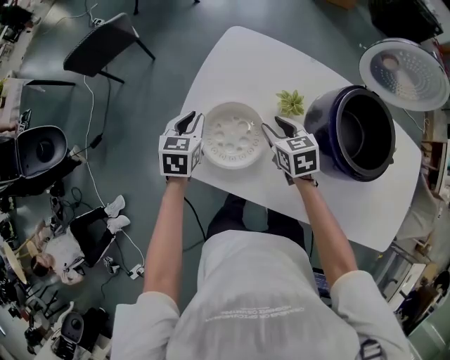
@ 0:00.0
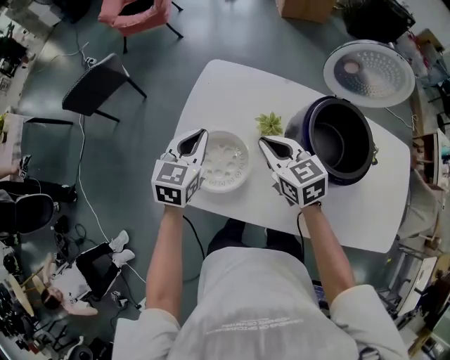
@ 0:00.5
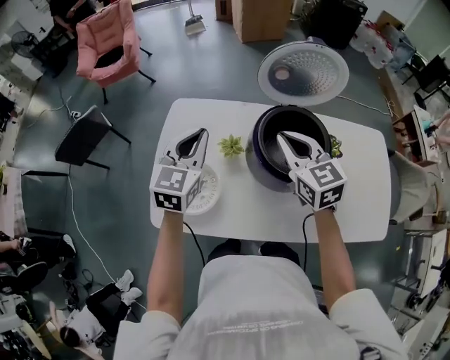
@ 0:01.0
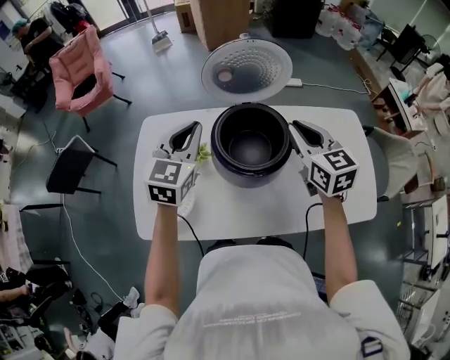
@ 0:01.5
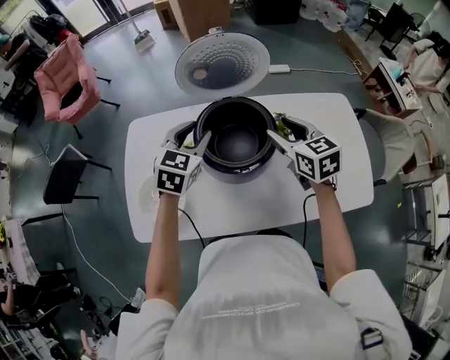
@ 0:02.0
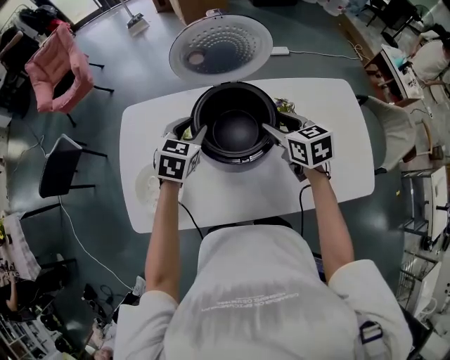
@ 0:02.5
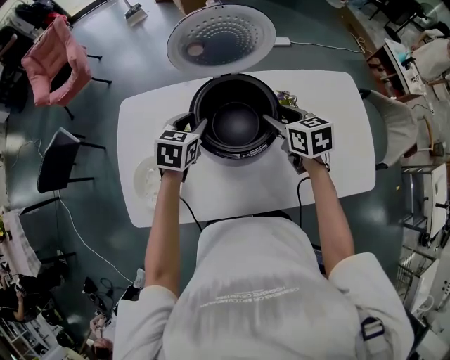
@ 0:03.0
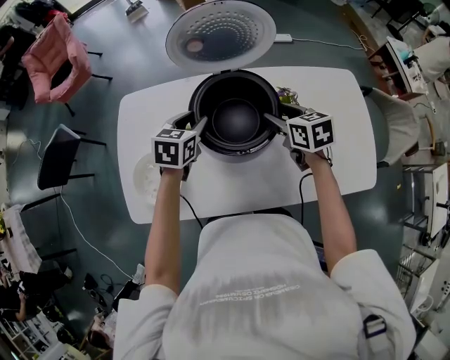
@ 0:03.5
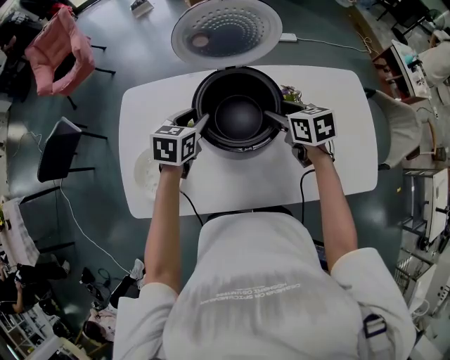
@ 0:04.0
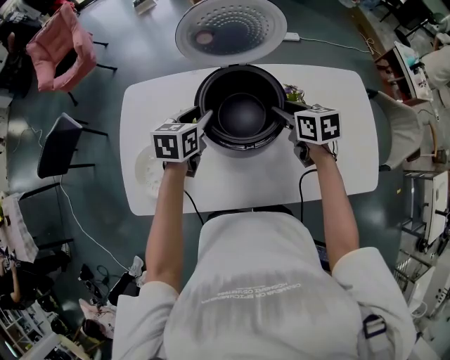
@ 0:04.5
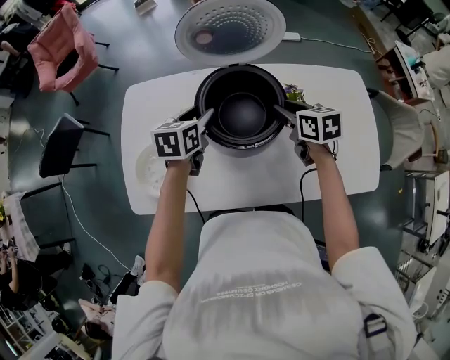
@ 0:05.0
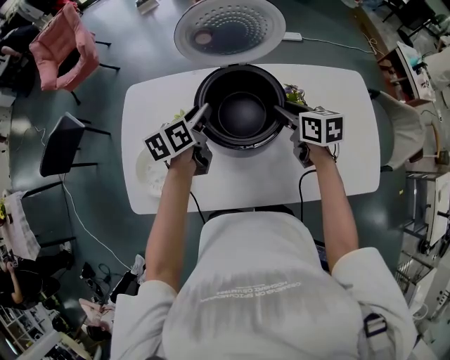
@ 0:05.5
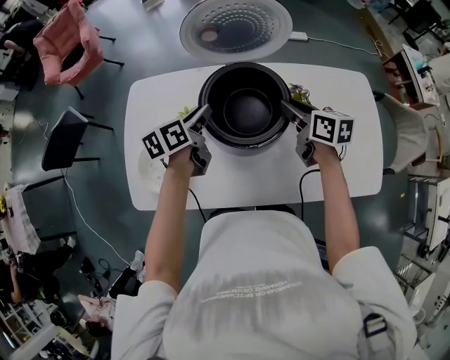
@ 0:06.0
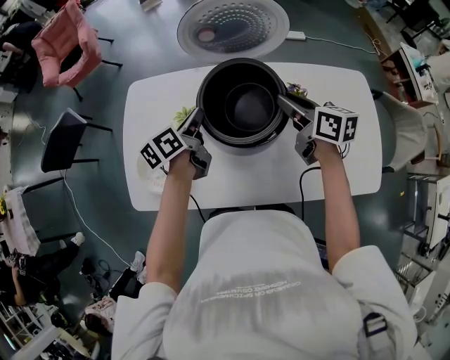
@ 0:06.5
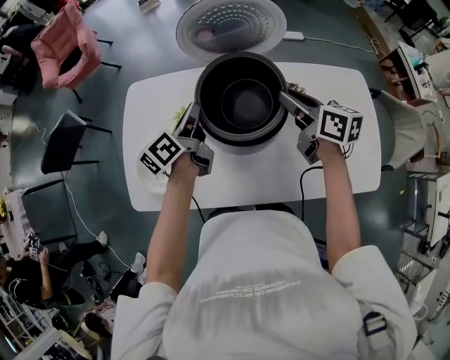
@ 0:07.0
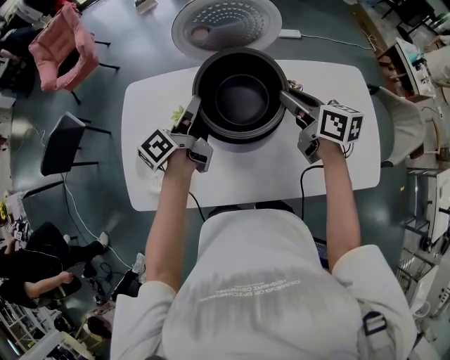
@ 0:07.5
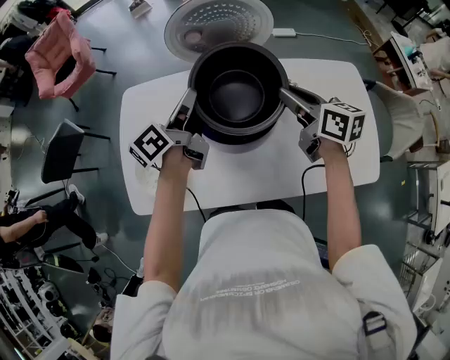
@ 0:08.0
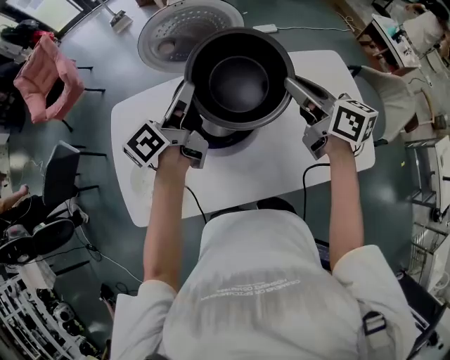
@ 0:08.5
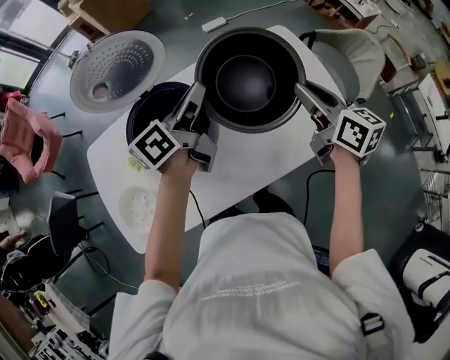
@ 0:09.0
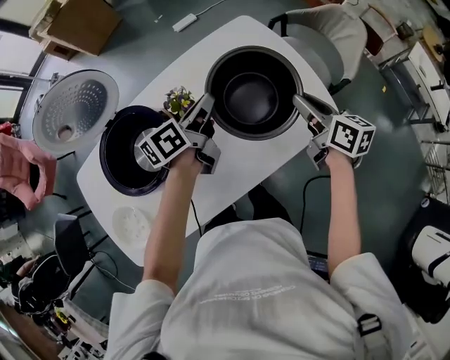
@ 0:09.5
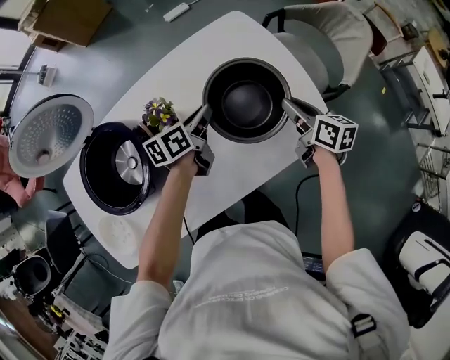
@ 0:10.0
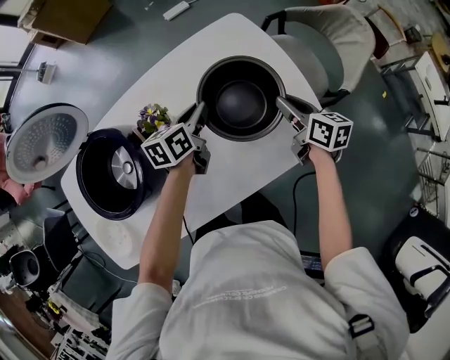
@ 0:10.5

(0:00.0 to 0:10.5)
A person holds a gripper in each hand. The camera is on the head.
0:00.0 - 0:02.0: The left gripper shifts by roughly 40 cm, swivels approximately 50 degrees, and opens up; the right gripper changes place by roughly 40 cm, turns by roughly 30 degrees, and closes, then opens again.
0:02.0 - 0:04.0: The grippers both shift downward by approximately 10 cm. The left gripper turns by roughly 20 degrees, while the right gripper rotates some 20 degrees.
0:04.0 - 0:06.5: The left gripper rolls counterclockwise, seen from behind, by approximately 50 degrees, and closes; the right gripper moves upward, about 5 cm, rotates about 30 degrees, and closes its fingers.
0:06.5 - 0:08.5: Both grippers move upward and to the right, roughly 15 cm. The left gripper changes its angle by approximately 30 degrees.
0:08.5 - 0:10.5: The right gripper shifts by approximately 40 cm, and turns by about 30 degrees, while the left gripper moves roughly 40 cm, and points its fingers approximately 30 degrees further downward.

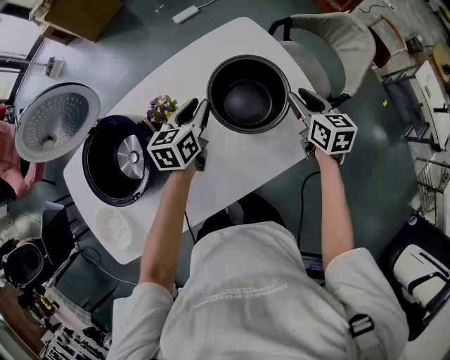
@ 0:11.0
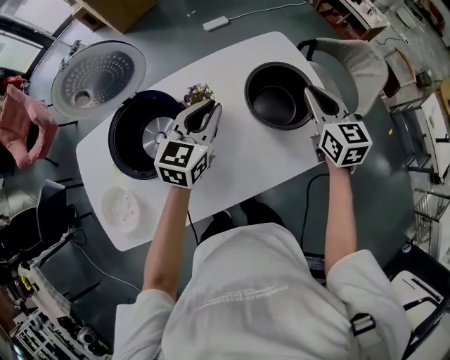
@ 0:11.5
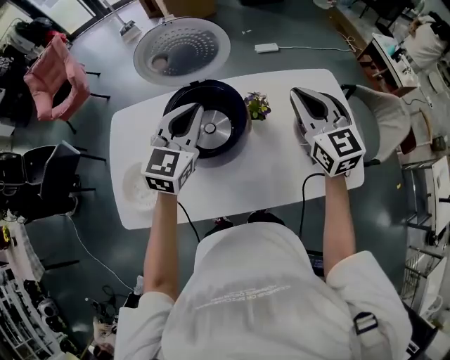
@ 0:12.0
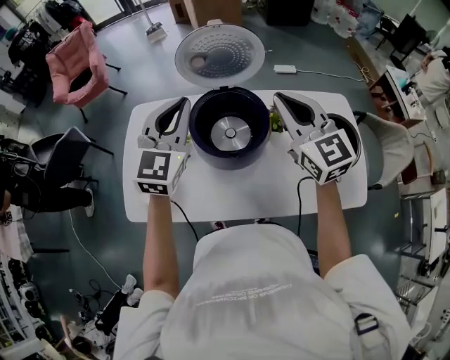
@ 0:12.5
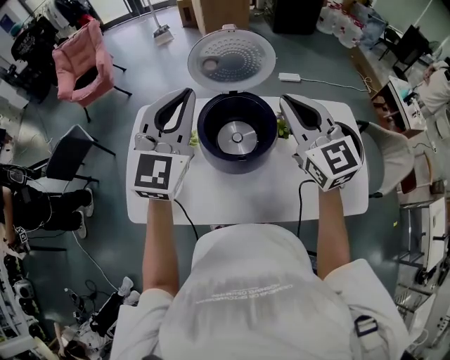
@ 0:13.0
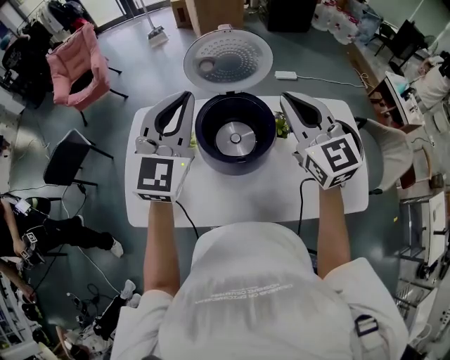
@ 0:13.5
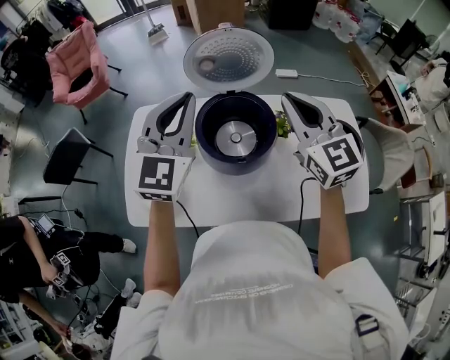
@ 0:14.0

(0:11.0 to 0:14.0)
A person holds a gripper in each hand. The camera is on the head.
0:11.0 - 0:12.5: The left gripper shifts by roughly 50 cm, changes its angle by some 50 degrees, and closes. Meanwhile the right gripper ends up about 50 cm from where it was, turns by some 60 degrees, and closes up.

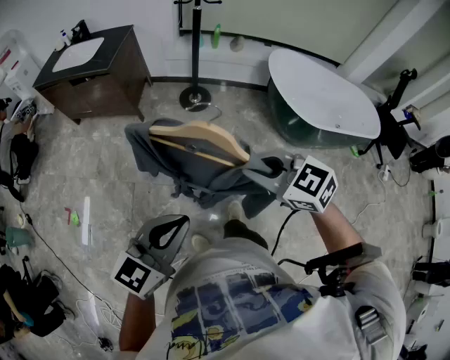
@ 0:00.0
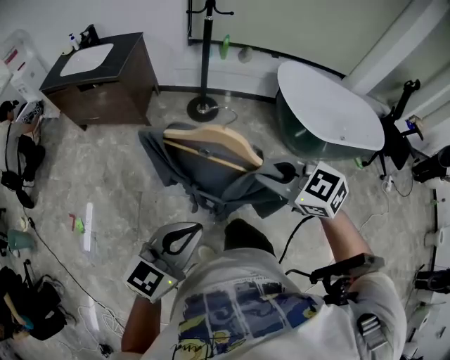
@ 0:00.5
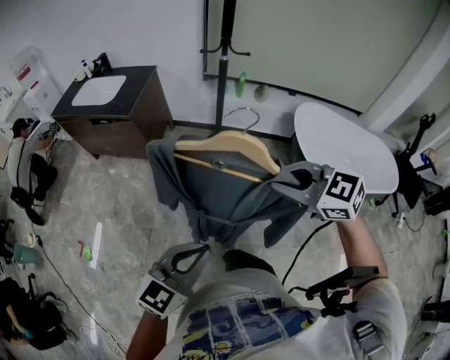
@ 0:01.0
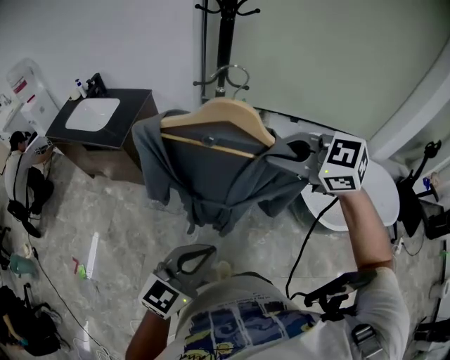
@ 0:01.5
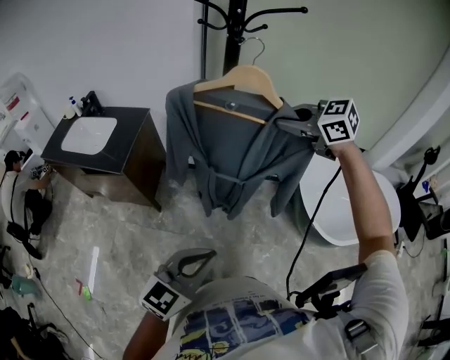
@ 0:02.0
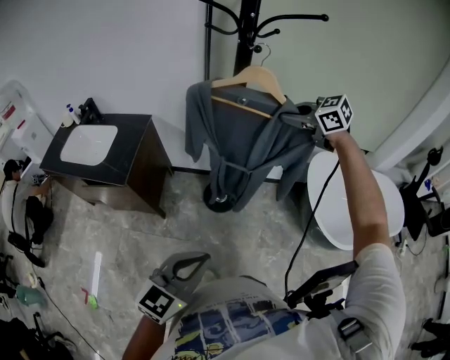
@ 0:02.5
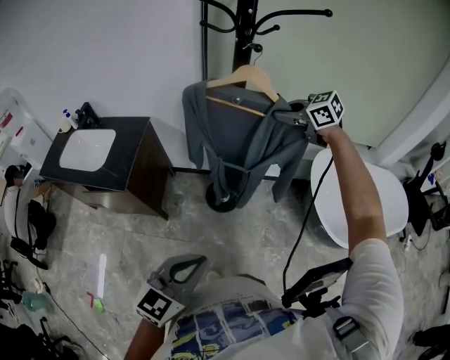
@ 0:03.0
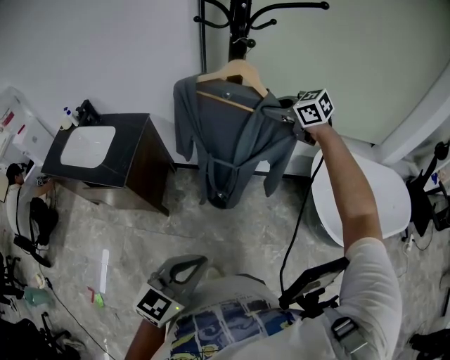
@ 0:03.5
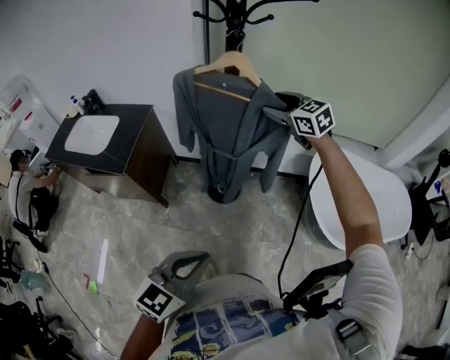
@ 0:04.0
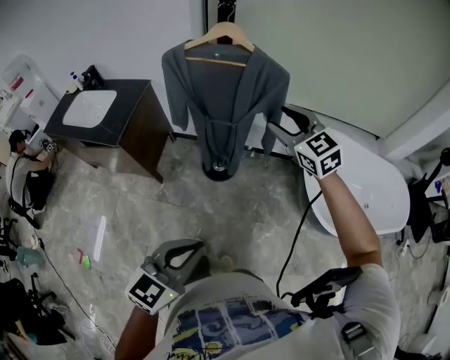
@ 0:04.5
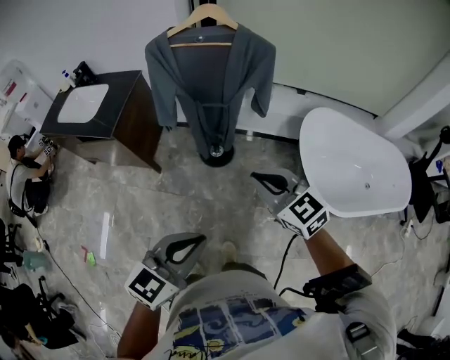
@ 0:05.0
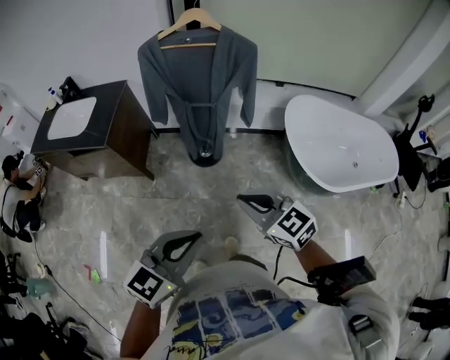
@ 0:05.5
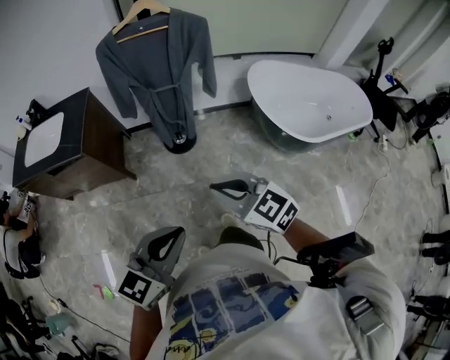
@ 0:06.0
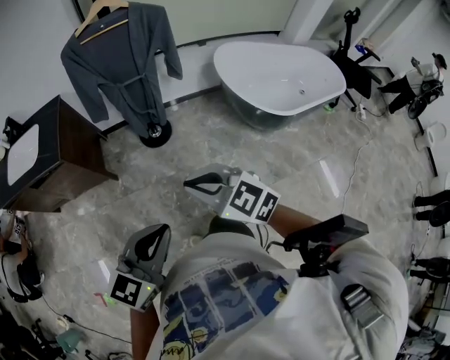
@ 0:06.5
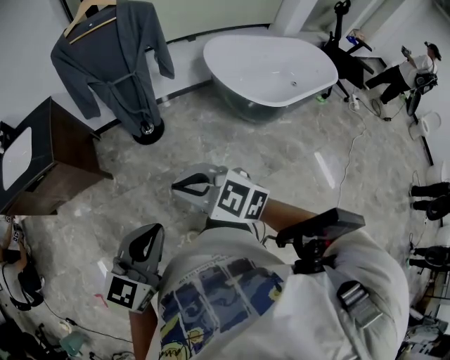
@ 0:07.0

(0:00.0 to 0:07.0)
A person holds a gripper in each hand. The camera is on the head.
0:00.0 - 0:02.0: Both grippers move forward, approximately 50 cm.
0:02.0 - 0:03.5: The right gripper is displaced forward and downward by roughly 20 cm. Meanwhile the left gripper is displaced forward by some 10 cm.
0:03.5 - 0:05.0: The right gripper heads backward, covering some 35 cm, and opens, then closes again. The left gripper goes about 15 cm backward and to the right.
0:05.0 - 0:07.0: The left gripper moves backward and to the left, some 15 cm. Meanwhile the right gripper is displaced backward and to the left by some 25 cm.

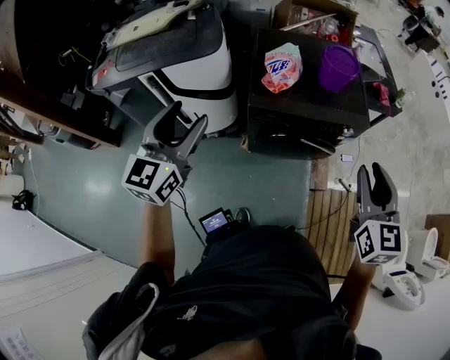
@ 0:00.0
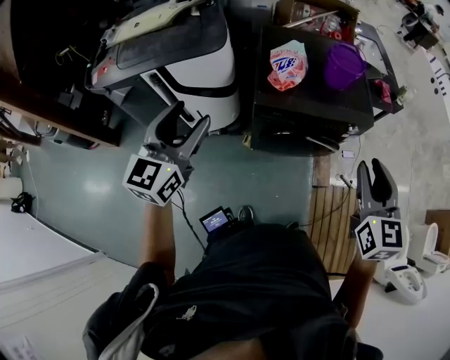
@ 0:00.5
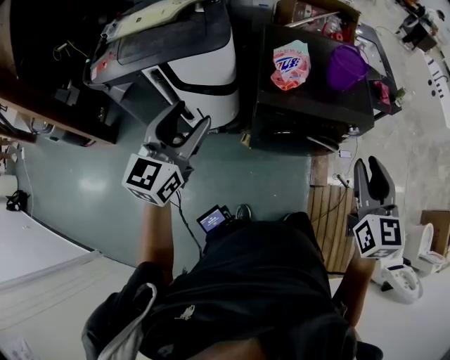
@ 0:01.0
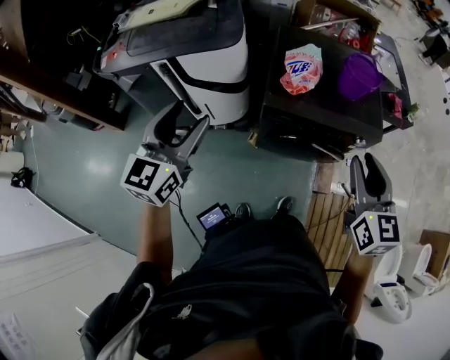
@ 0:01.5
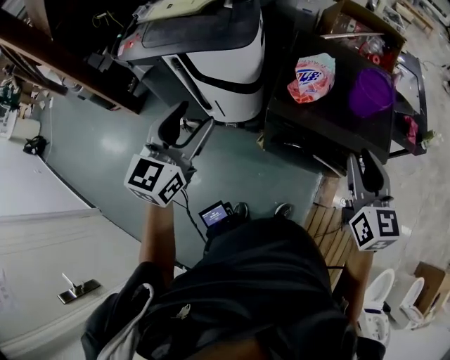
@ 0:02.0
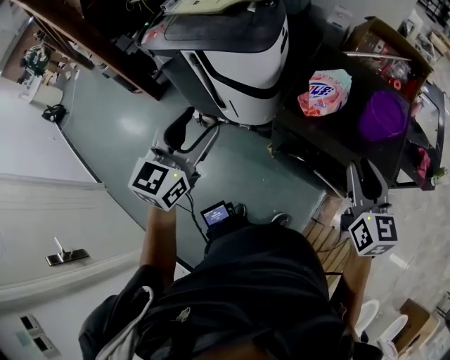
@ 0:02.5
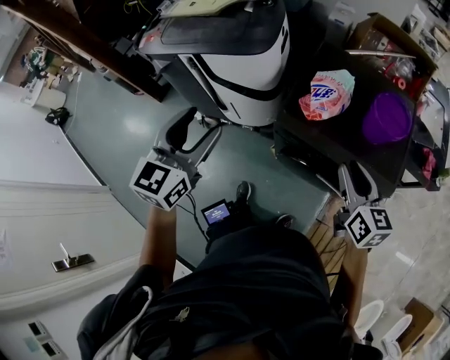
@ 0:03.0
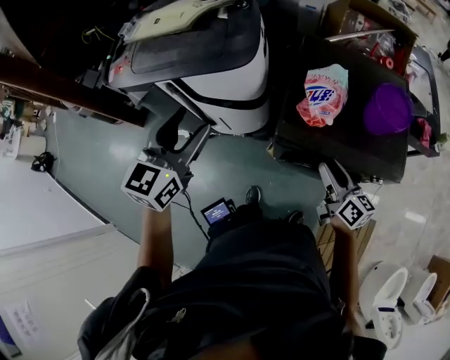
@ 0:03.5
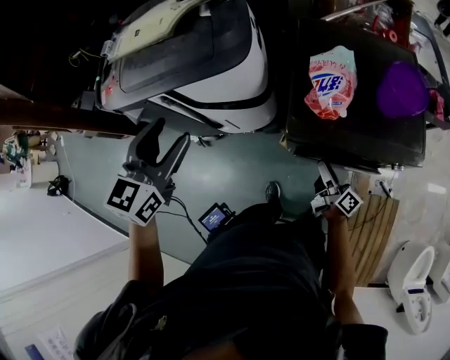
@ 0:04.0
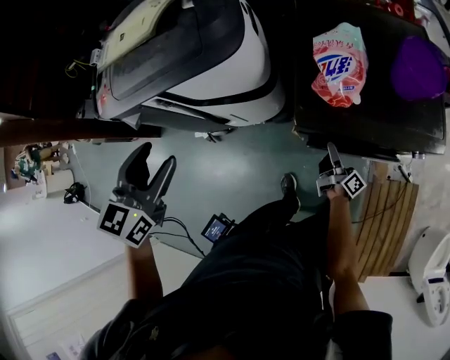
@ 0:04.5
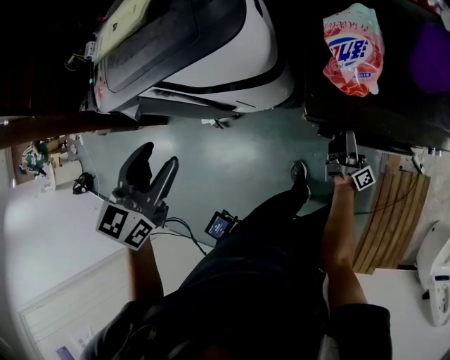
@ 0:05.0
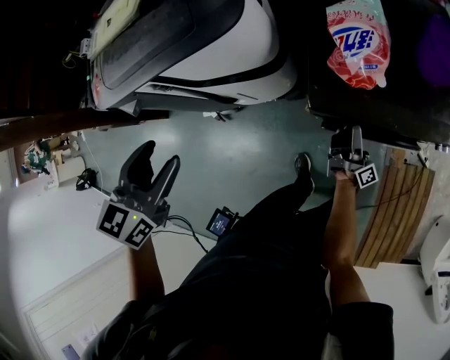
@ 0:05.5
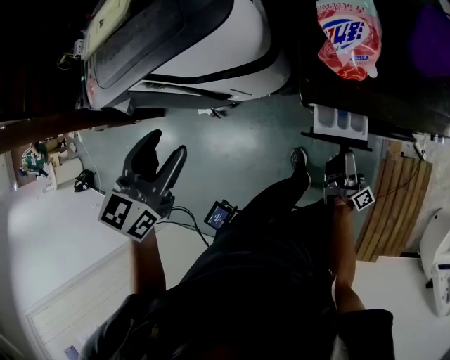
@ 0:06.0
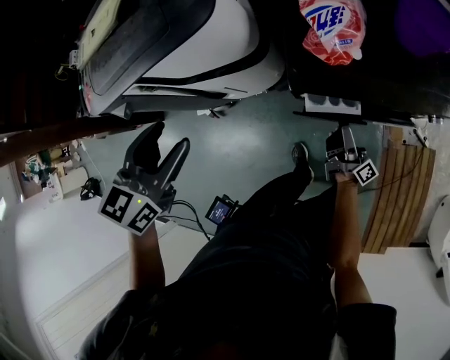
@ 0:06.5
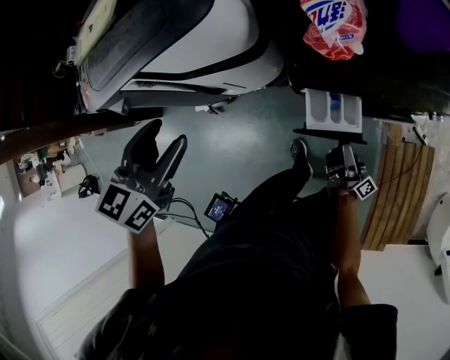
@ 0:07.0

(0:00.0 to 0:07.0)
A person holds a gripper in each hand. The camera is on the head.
0:00.0 - 0:02.0: The right gripper is displaced forward by about 15 cm, and changes its angle by some 20 degrees.
0:02.0 - 0:03.5: The right gripper is displaced downward and forward by about 20 cm, and swivels roughly 40 degrees, while the left gripper heads forward, covering some 15 cm.
0:03.5 - 0:05.0: The left gripper heads to the left and downward, covering about 10 cm, and rotates approximately 20 degrees; the right gripper moves downward, some 25 cm, turns by roughly 60 degrees, and opens.
0:05.0 - 0:07.0: The right gripper swings forward and backward, about 10 cm each way, with 2 reversals, while the left gripper shifts approximately 5 cm to the right.
